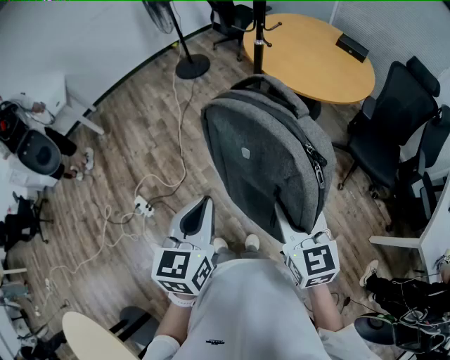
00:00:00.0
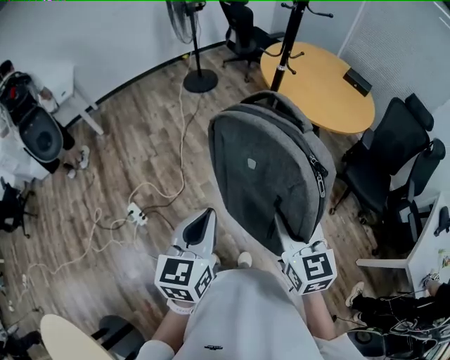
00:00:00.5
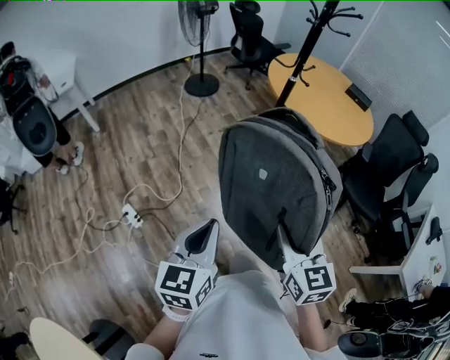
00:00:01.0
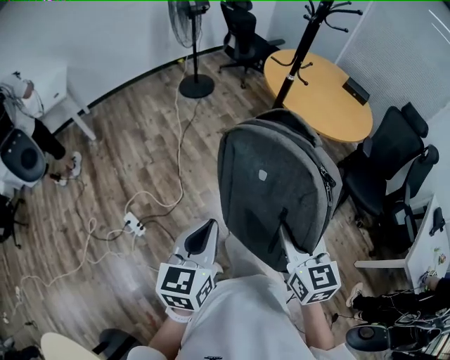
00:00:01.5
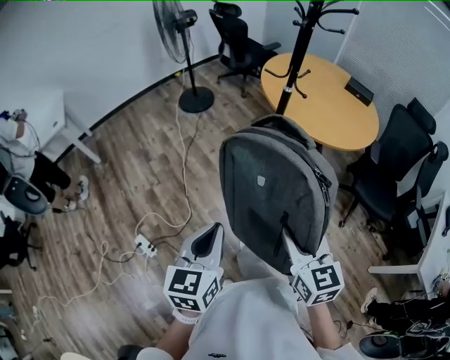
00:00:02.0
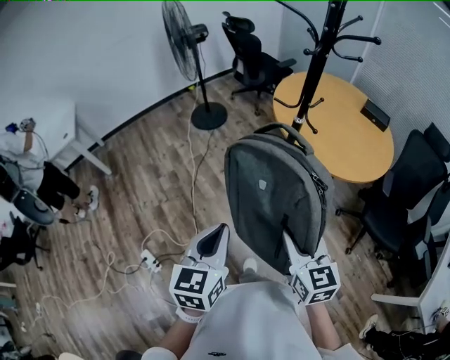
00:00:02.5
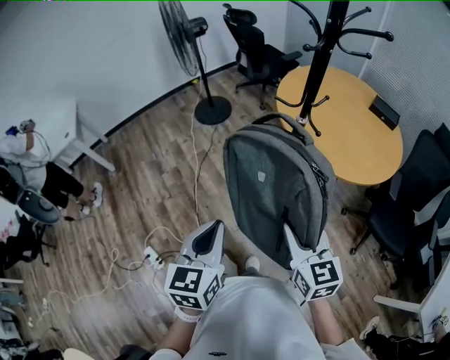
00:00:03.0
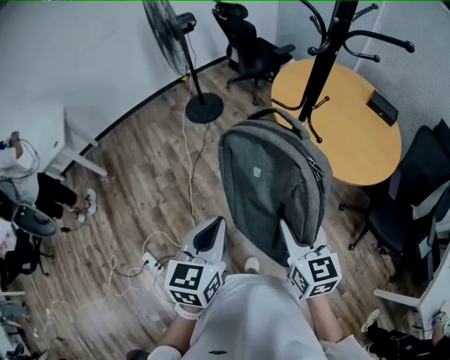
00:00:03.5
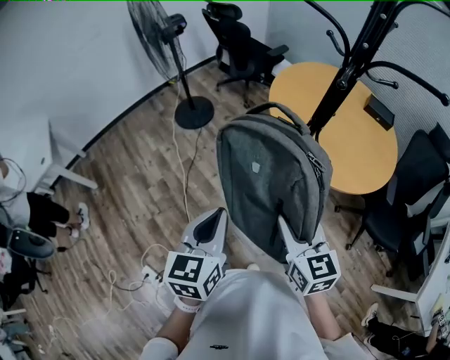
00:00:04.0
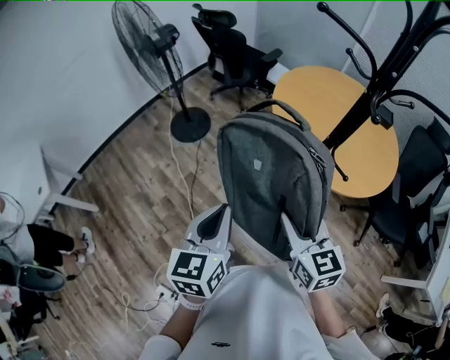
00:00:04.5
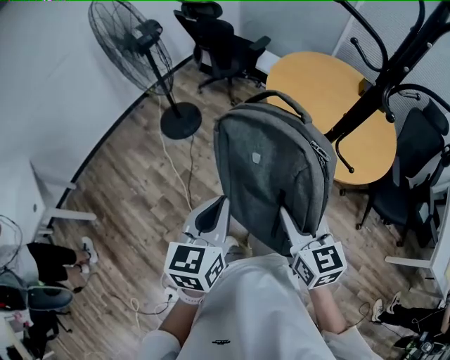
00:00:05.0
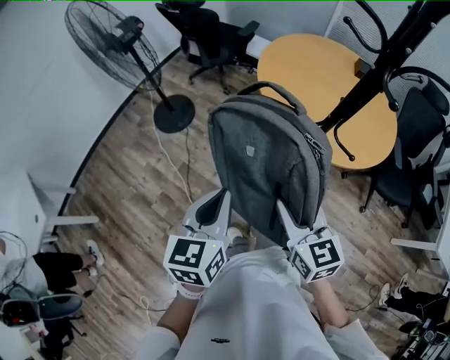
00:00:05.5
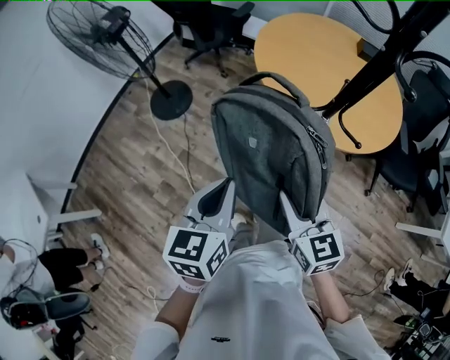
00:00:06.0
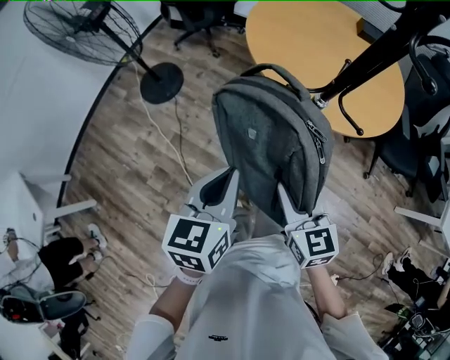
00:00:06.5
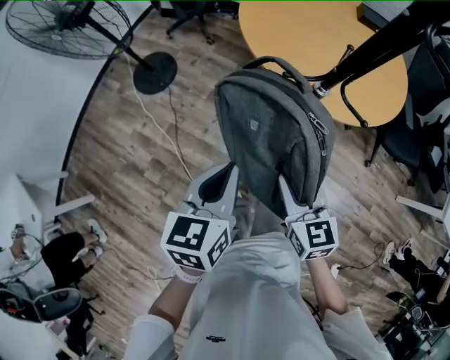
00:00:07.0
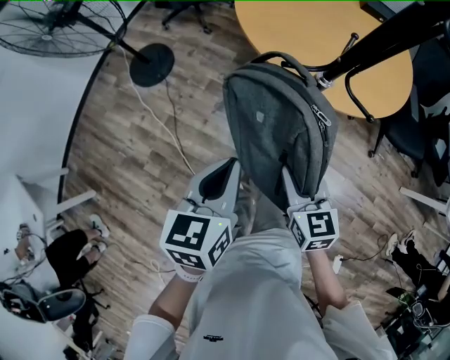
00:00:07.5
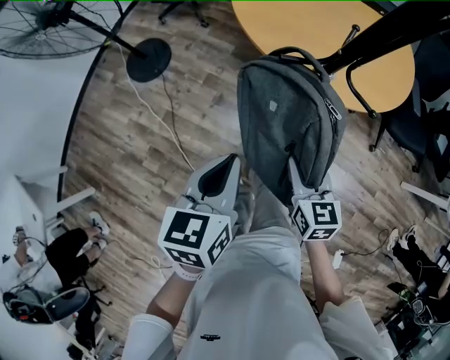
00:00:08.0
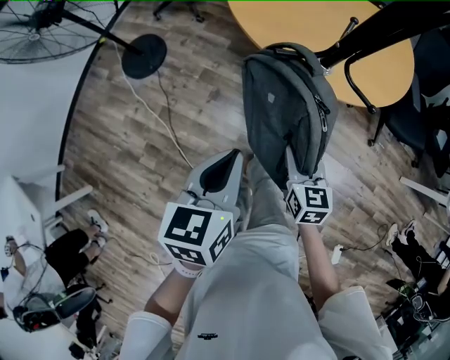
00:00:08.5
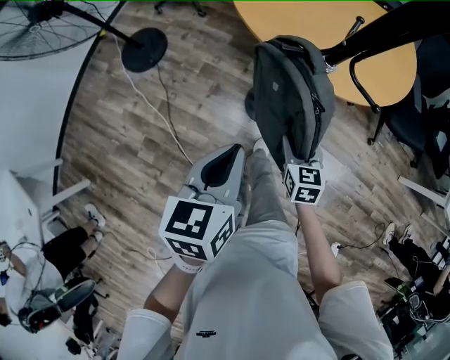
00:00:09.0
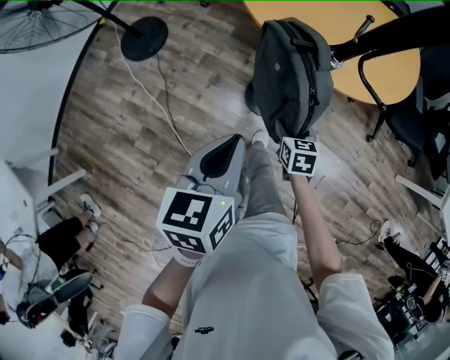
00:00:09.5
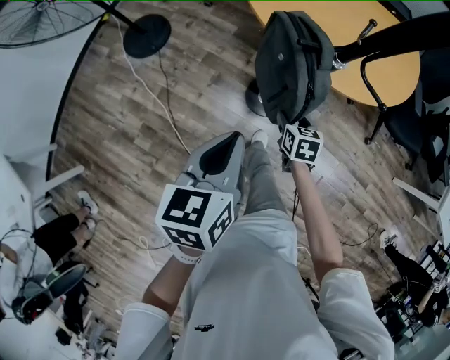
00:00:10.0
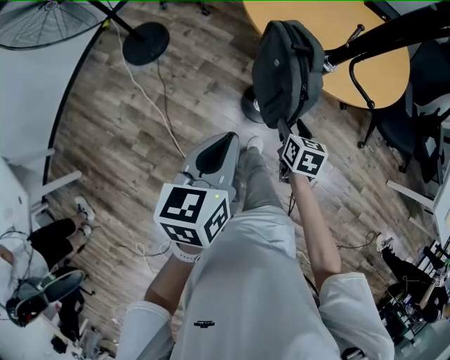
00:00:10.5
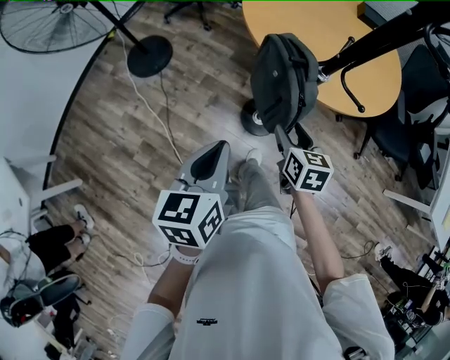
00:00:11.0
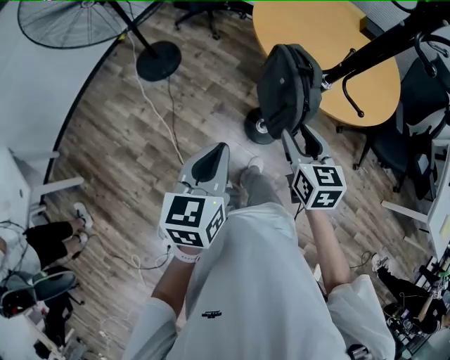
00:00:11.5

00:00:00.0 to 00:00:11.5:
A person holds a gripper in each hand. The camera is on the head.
00:00:00.0 to 00:00:02.0: The two grippers go roughly 15 cm to the left and forward.
00:00:02.0 to 00:00:04.0: Both grippers move forward, approximately 35 cm.
00:00:04.0 to 00:00:06.0: The grippers both shift forward and to the left by approximately 15 cm.
00:00:06.0 to 00:00:07.5: Both grippers travel together downward and to the right, approximately 10 cm.
00:00:07.5 to 00:00:09.5: The right gripper shifts some 20 cm downward, changes its angle by roughly 20 degrees, and opens its fingers.
00:00:09.5 to 00:00:11.5: The right gripper heads upward, covering some 25 cm, and swivels roughly 20 degrees. The left gripper moves to the left, backward and upward, about 10 cm.

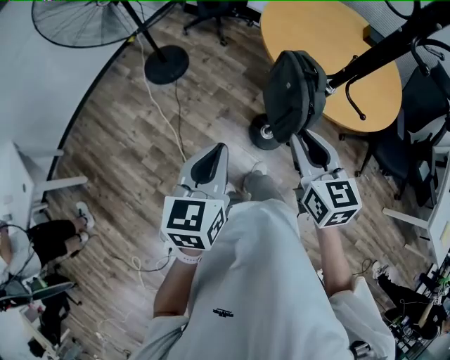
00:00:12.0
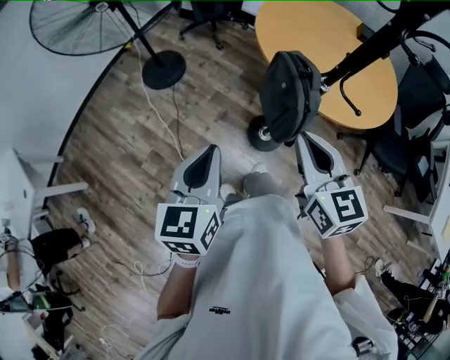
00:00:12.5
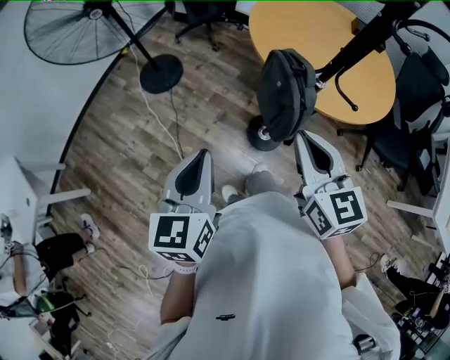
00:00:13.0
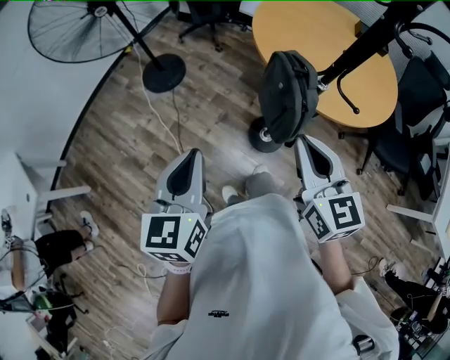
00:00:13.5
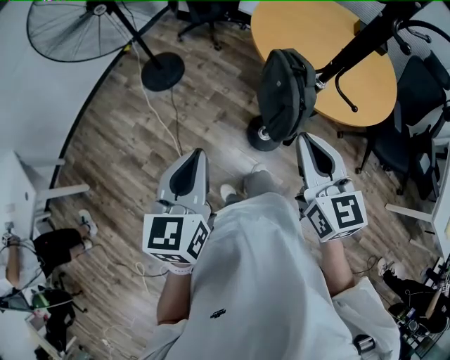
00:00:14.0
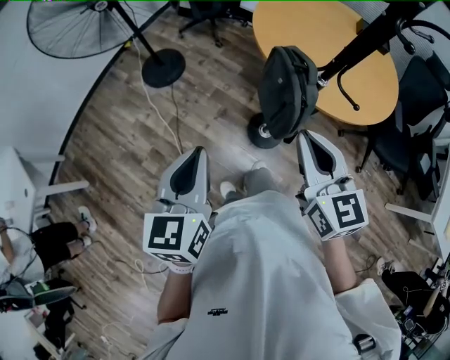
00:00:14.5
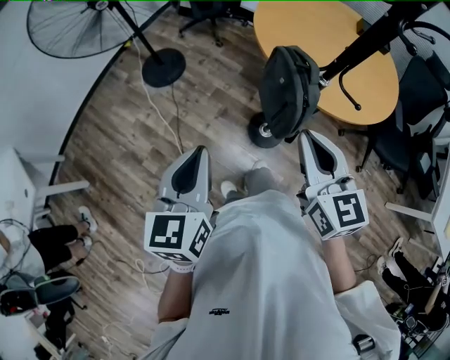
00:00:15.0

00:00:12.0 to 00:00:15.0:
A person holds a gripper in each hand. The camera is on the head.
00:00:12.0 to 00:00:13.5: The right gripper changes place by some 5 cm.
00:00:13.5 to 00:00:15.0: The grippers stay close to where they were, moving slightly.

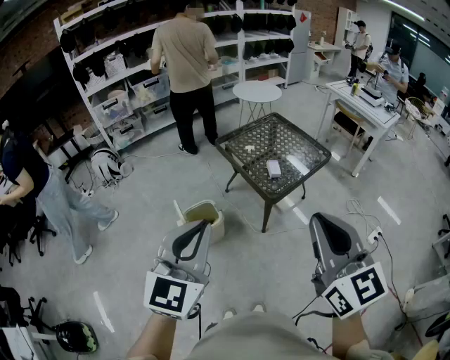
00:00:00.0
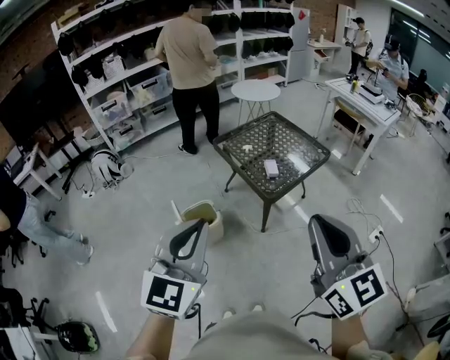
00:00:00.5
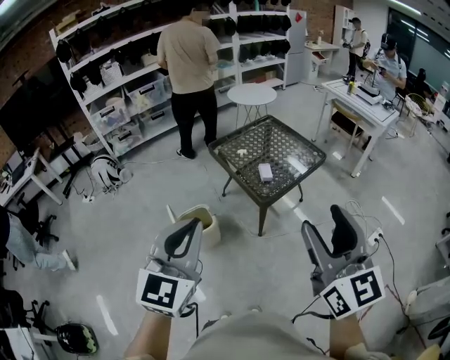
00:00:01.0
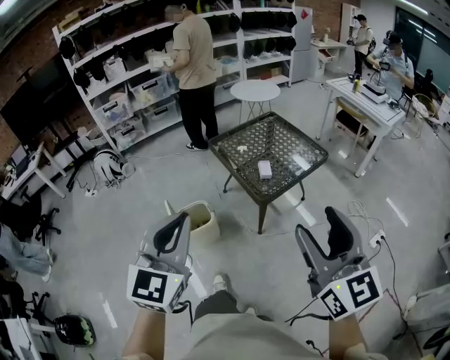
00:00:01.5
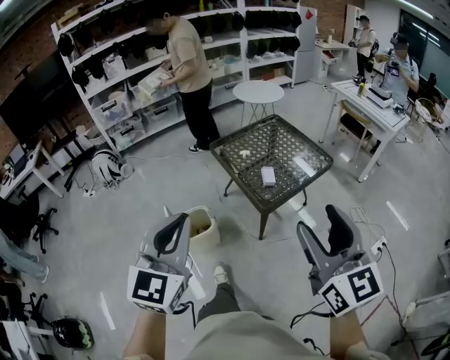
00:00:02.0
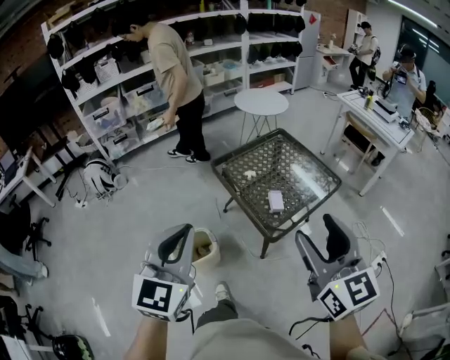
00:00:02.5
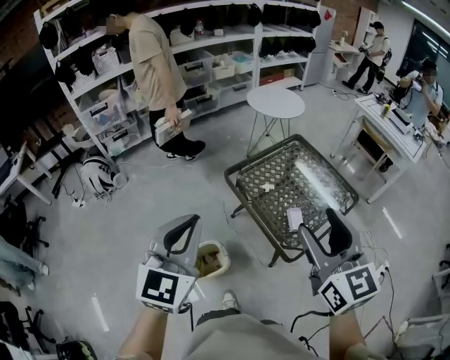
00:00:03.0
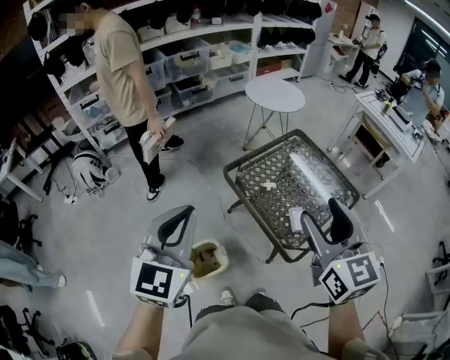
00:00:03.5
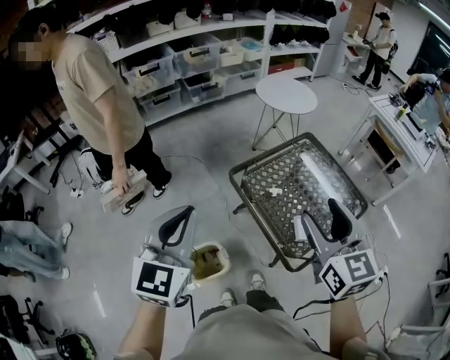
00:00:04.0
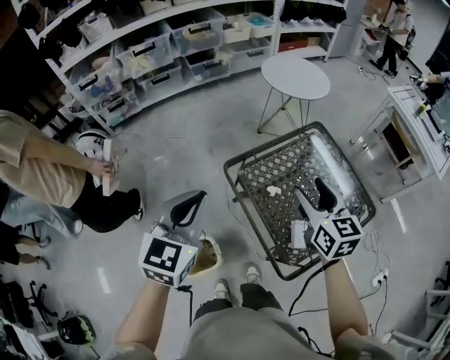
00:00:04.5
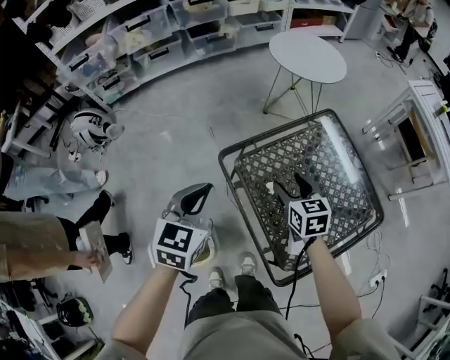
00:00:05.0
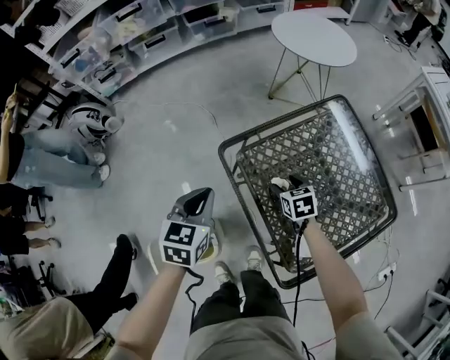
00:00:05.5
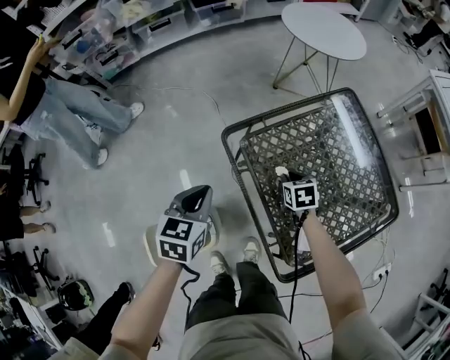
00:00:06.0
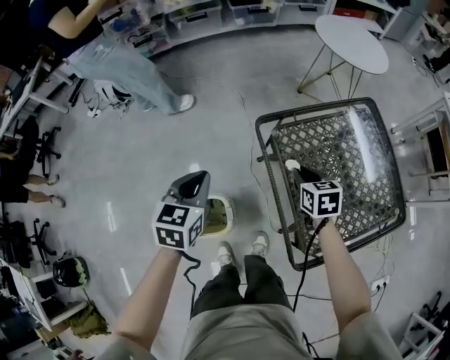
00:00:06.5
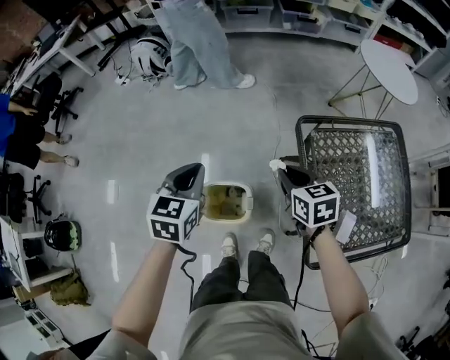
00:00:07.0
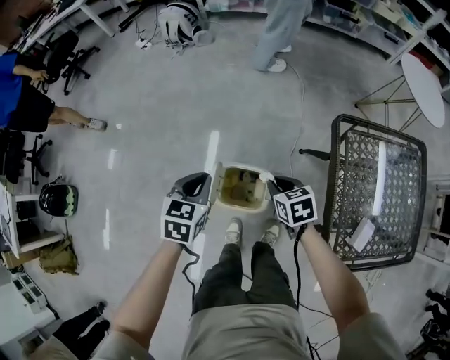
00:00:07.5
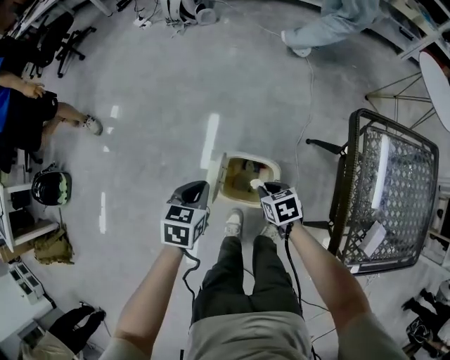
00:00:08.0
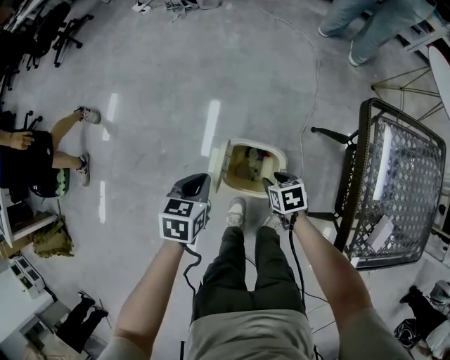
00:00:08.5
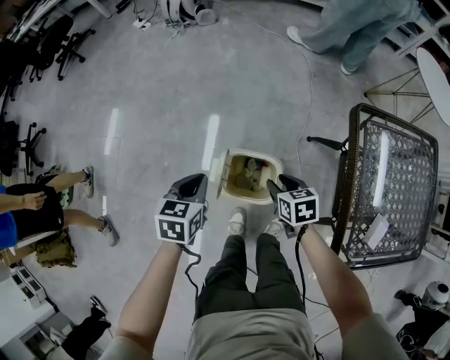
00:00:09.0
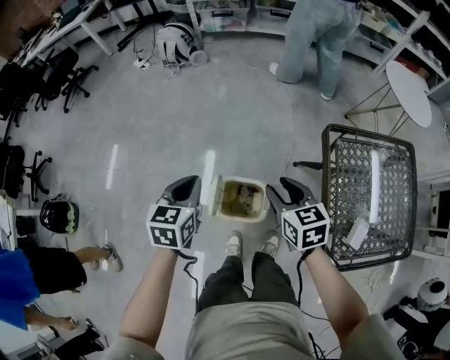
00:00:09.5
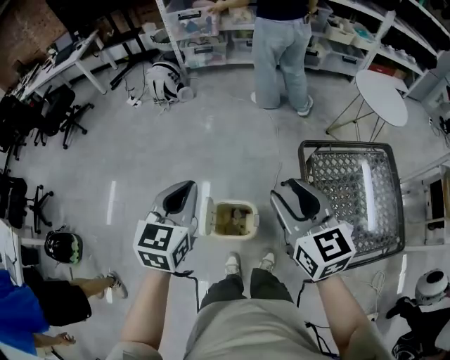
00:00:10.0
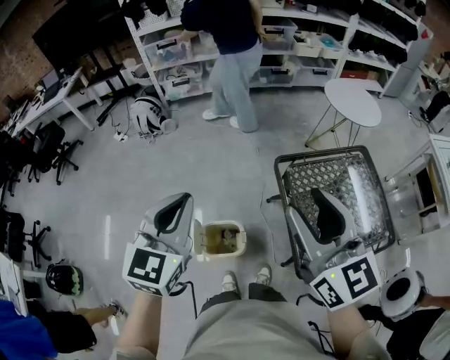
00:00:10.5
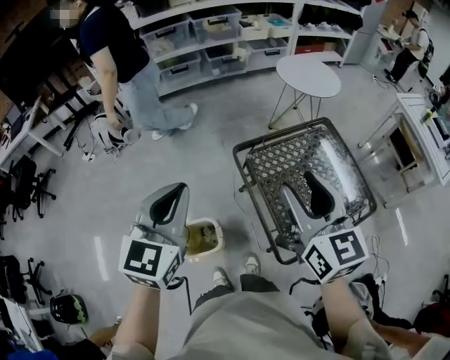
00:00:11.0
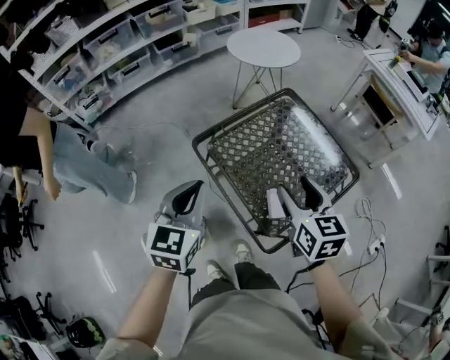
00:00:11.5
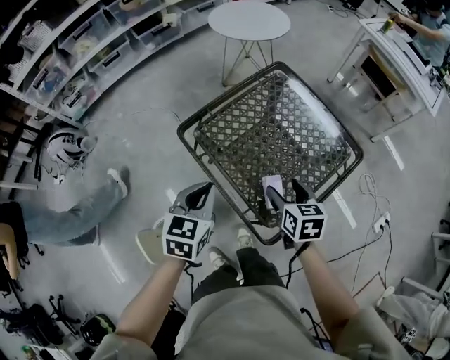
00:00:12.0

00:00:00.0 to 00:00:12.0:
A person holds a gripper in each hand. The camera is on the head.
00:00:00.0 to 00:00:02.0: The right gripper travels to the right and forward by roughly 10 cm, and opens. The left gripper travels forward by about 10 cm.
00:00:02.0 to 00:00:04.0: Both grippers are carried forward, about 40 cm.
00:00:04.0 to 00:00:06.0: The right gripper goes approximately 60 cm downward and forward, tilts its fingers some 50 degrees downward, and closes. The left gripper travels downward and forward by about 35 cm, and swivels about 40 degrees.
00:00:06.0 to 00:00:08.0: The two grippers travel together, approximately 40 cm. The right gripper swivels some 40 degrees, while the left gripper turns by some 30 degrees.
00:00:08.0 to 00:00:10.0: Both grippers travel together upward, roughly 40 cm. The right gripper tips its fingers upward by roughly 40 degrees, and opens its fingers. The left gripper rotates about 30 degrees.
00:00:10.0 to 00:00:12.0: The left gripper shifts by approximately 40 cm, and turns by roughly 40 degrees. The right gripper shifts by roughly 40 cm, changes its angle by some 60 degrees, and opens its fingers.
